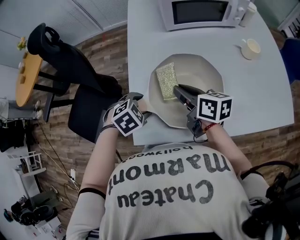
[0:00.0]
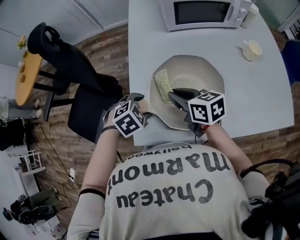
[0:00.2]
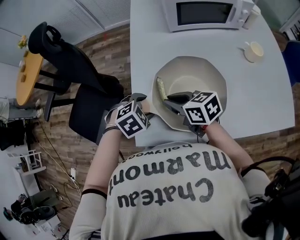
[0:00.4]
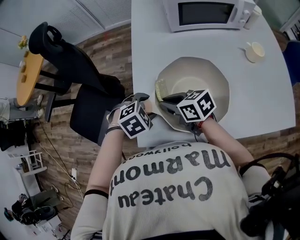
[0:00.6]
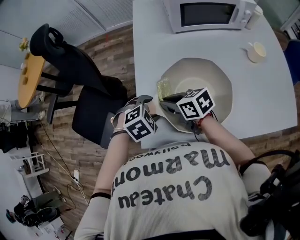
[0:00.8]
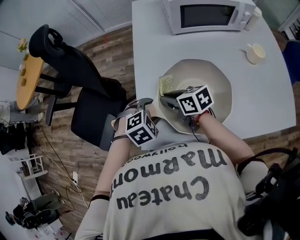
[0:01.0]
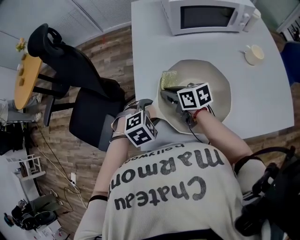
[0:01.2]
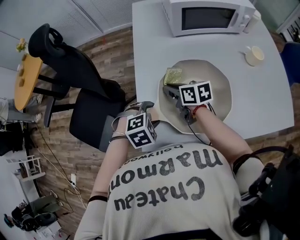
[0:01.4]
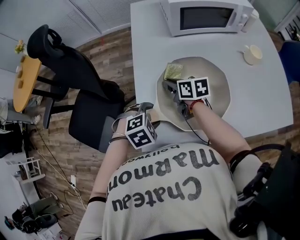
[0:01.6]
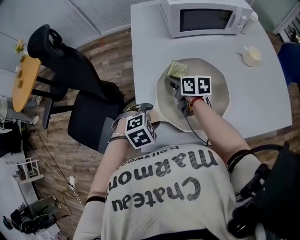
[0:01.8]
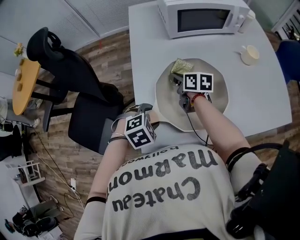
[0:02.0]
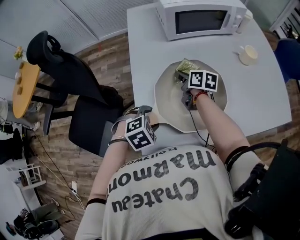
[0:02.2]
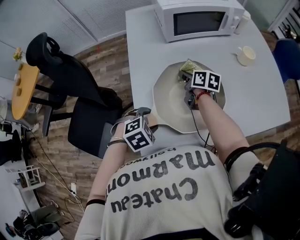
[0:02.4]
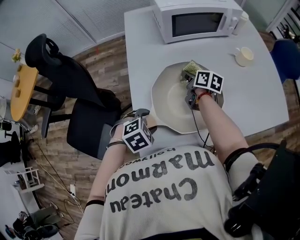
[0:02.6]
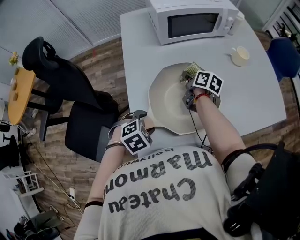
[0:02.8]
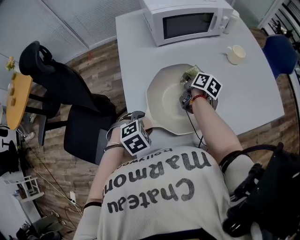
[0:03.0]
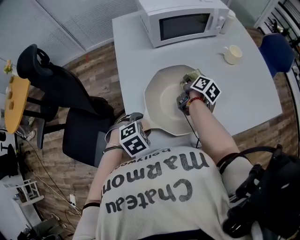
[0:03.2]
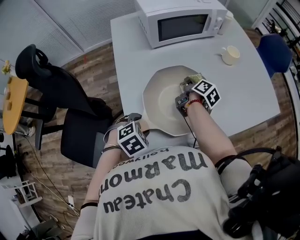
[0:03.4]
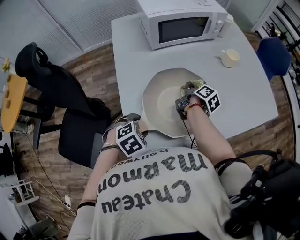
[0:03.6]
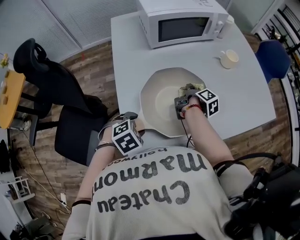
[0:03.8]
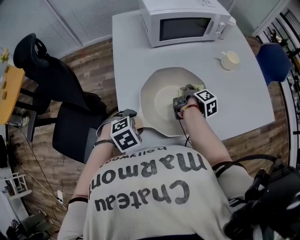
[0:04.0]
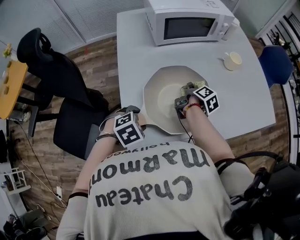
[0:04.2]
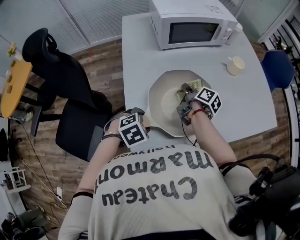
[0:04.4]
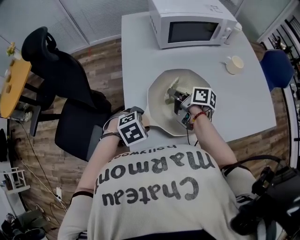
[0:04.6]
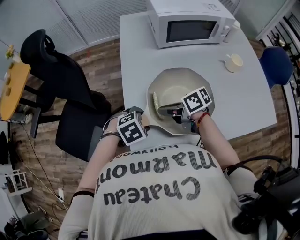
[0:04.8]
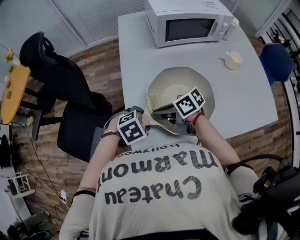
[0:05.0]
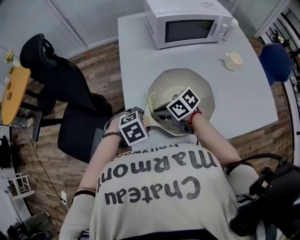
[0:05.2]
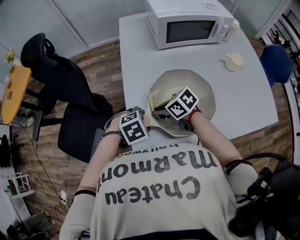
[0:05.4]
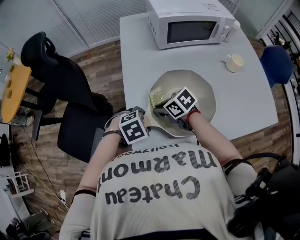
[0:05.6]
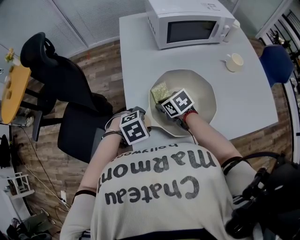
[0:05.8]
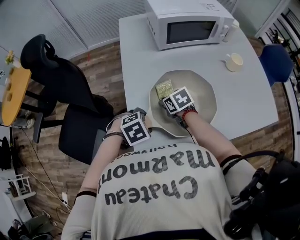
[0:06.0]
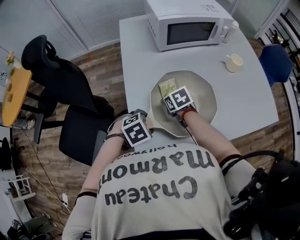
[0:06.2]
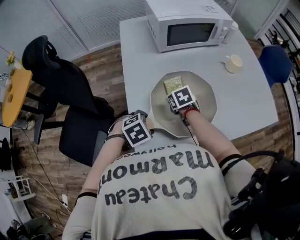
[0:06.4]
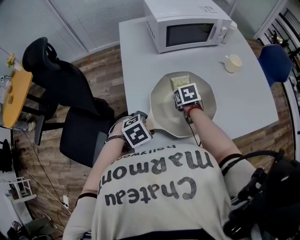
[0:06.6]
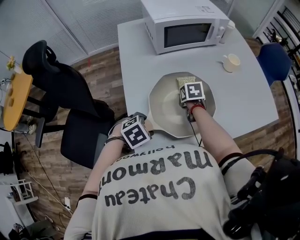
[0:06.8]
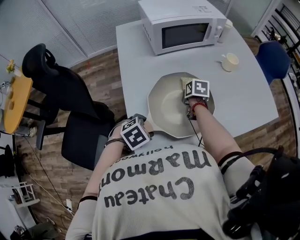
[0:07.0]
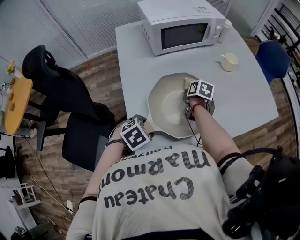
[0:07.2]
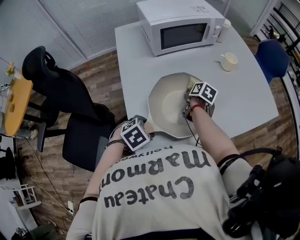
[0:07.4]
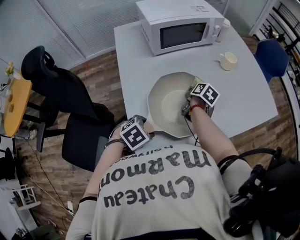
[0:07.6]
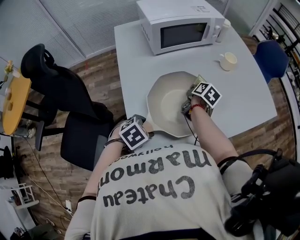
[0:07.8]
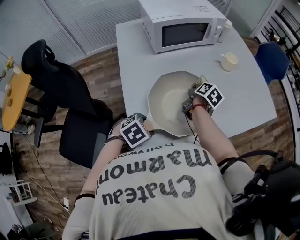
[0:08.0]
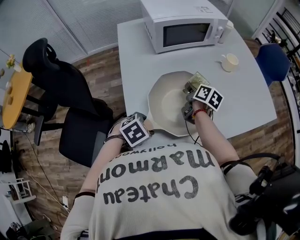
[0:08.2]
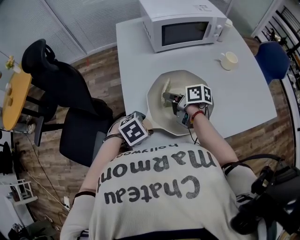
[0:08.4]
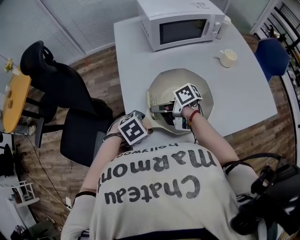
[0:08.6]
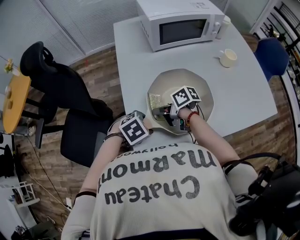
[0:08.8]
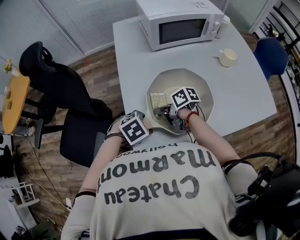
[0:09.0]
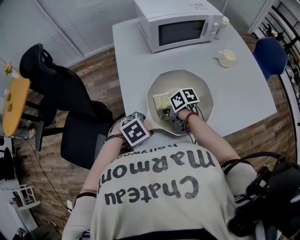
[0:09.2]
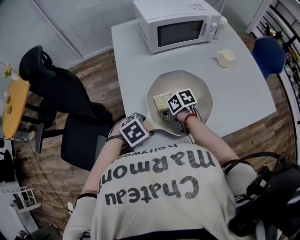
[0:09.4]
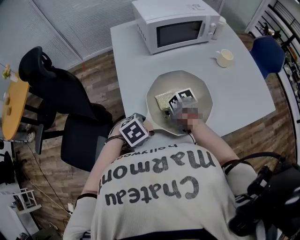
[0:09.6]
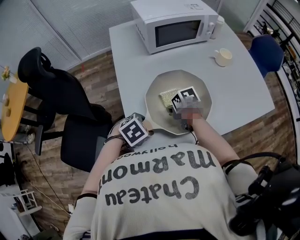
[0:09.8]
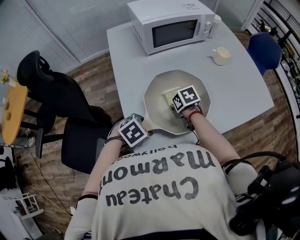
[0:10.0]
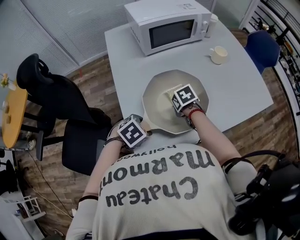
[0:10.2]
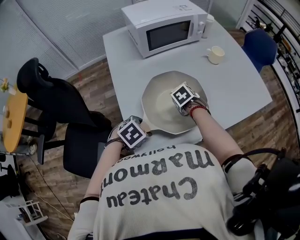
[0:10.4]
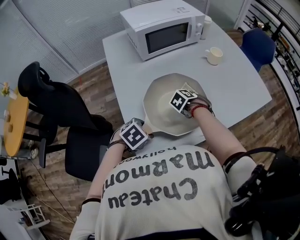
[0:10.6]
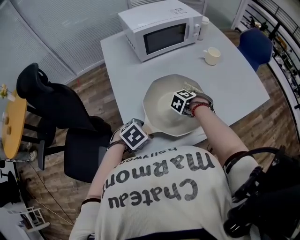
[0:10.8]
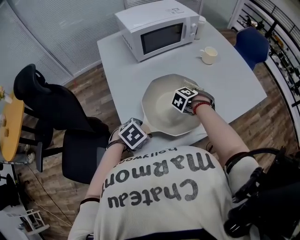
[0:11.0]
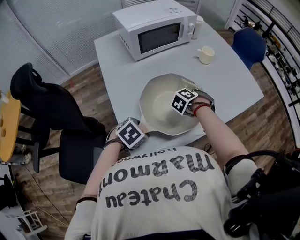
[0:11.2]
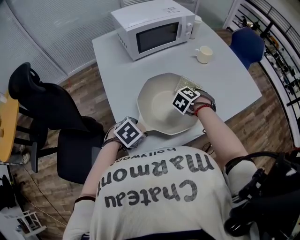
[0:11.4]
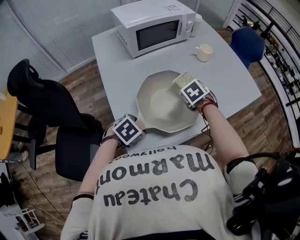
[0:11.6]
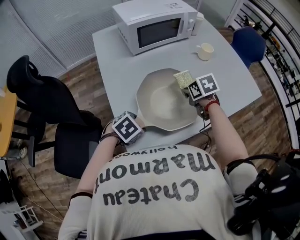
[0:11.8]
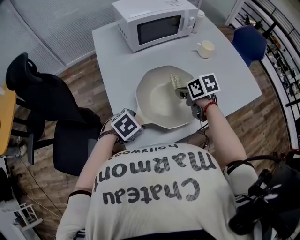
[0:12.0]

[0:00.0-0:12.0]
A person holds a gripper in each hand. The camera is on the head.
0:00.0 to 0:01.6: The right gripper moves forward, downward and to the left, approximately 15 cm.
0:01.6 to 0:03.0: The right gripper travels to the right and forward by about 15 cm, and swivels some 50 degrees.
0:04.4 to 0:06.0: The right gripper rotates around the line of its fingers by roughly 60 degrees, counterclockwise from behind.
0:06.0 to 0:07.6: The right gripper changes place by approximately 20 cm, and twists some 60 degrees clockwise, seen from behind.
0:07.6 to 0:09.0: The right gripper changes place by approximately 25 cm, and rotates roughly 70 degrees.
0:09.0 to 0:10.4: The right gripper changes place by approximately 15 cm, and points its fingers some 50 degrees further downward.
0:10.4 to 0:12.0: The right gripper travels upward by some 10 cm, and rotates roughly 40 degrees.

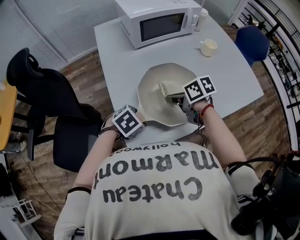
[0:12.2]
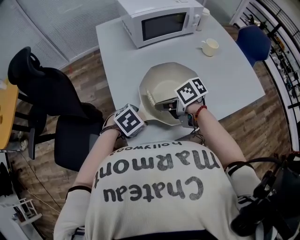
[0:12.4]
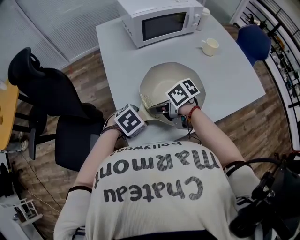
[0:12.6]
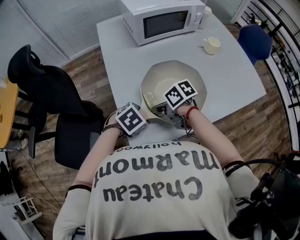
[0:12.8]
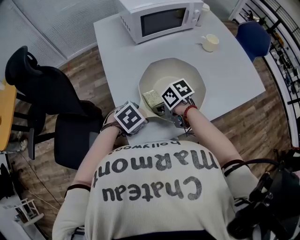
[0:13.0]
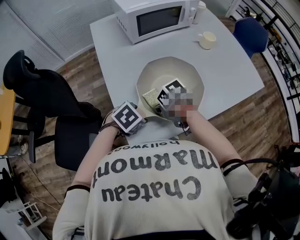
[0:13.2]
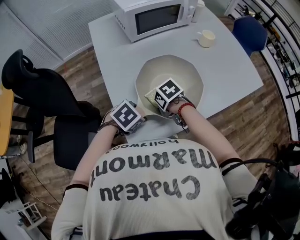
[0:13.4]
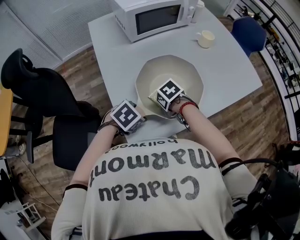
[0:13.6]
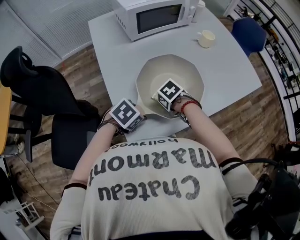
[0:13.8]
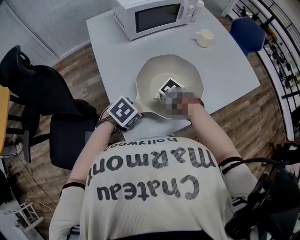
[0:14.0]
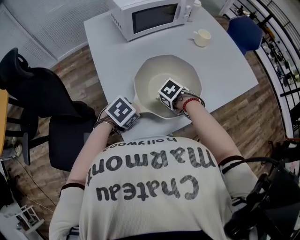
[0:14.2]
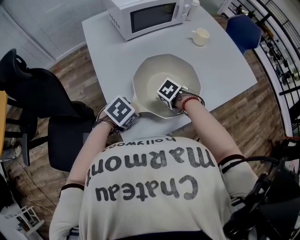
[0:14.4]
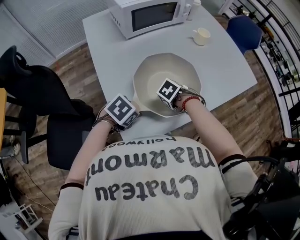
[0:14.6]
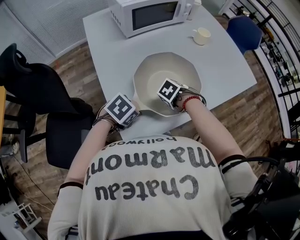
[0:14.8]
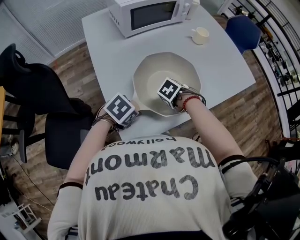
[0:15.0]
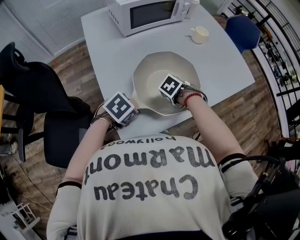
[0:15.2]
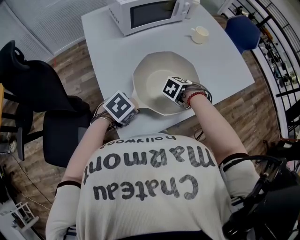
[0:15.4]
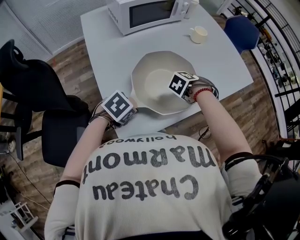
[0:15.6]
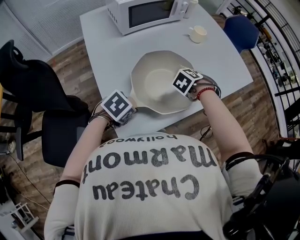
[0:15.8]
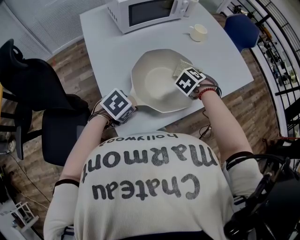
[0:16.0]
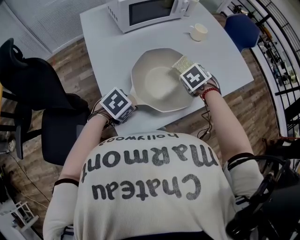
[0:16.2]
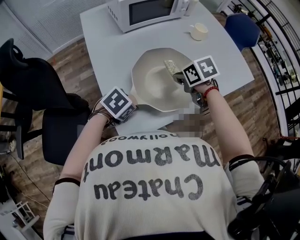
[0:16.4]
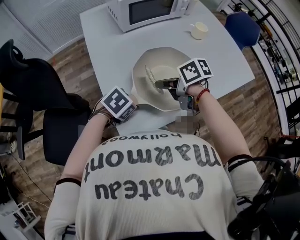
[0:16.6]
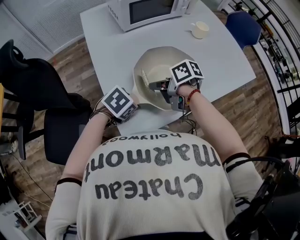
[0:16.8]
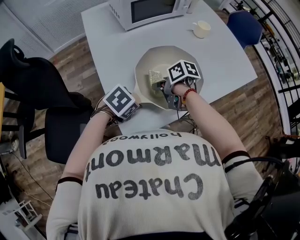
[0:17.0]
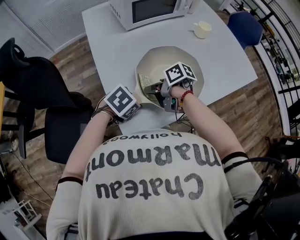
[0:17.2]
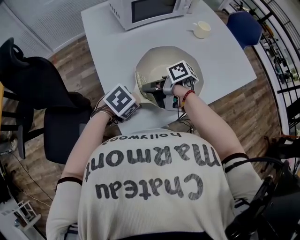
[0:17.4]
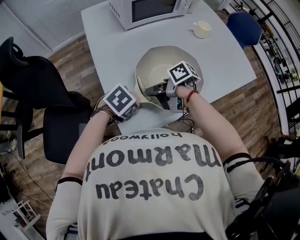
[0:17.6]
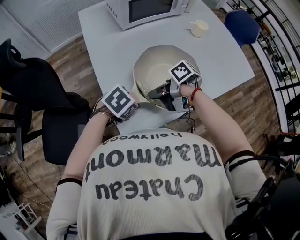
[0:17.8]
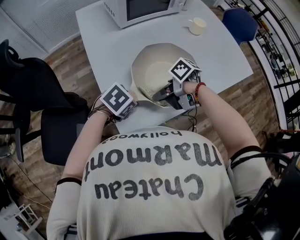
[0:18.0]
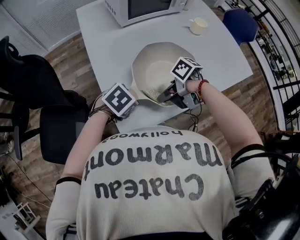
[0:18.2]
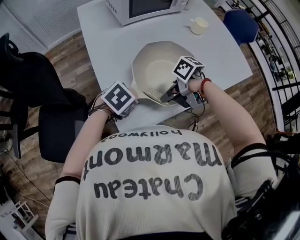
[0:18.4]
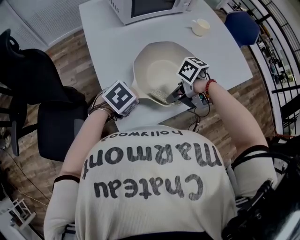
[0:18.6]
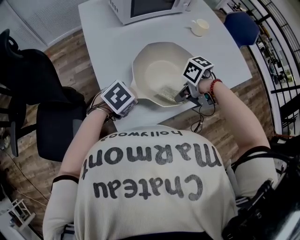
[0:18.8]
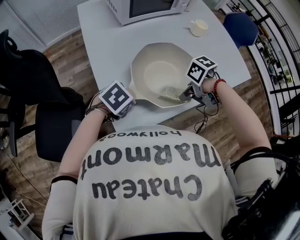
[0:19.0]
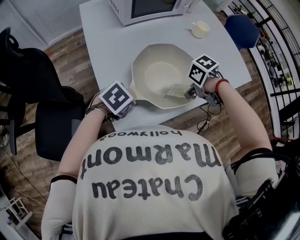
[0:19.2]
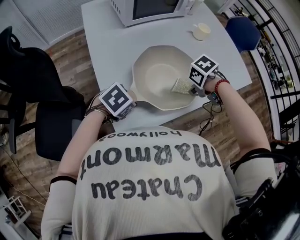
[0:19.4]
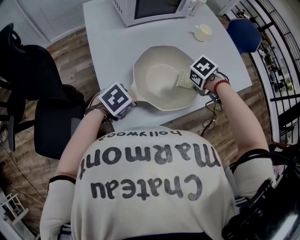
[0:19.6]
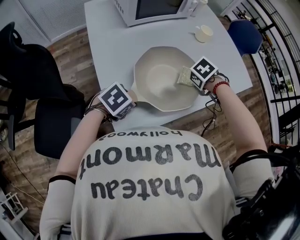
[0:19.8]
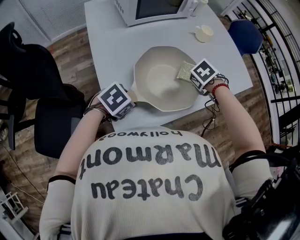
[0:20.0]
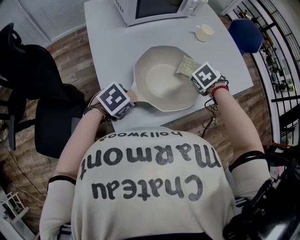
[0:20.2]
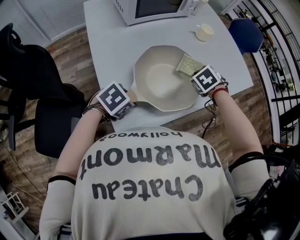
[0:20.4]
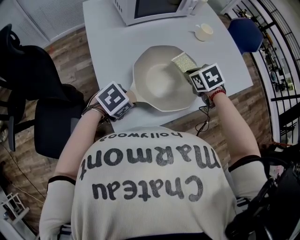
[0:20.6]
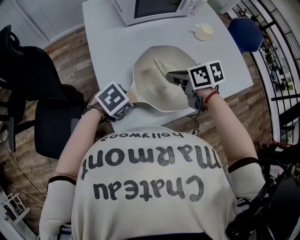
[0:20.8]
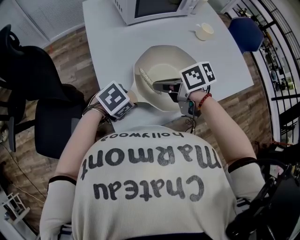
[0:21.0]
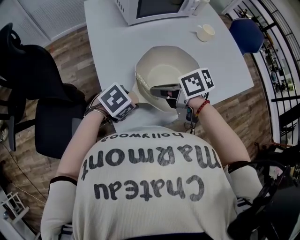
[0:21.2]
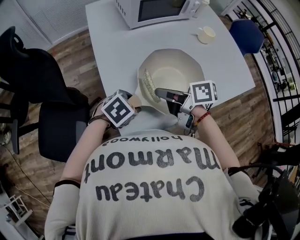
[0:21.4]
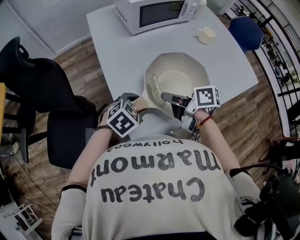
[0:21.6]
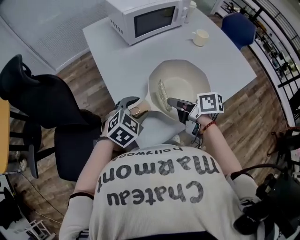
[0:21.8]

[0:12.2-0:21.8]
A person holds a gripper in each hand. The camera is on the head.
0:12.2 to 0:13.8: The right gripper shifts approximately 10 cm downward, and tilts its fingers some 40 degrees downward.
0:13.8 to 0:15.4: The right gripper shifts by approximately 10 cm, and turns by roughly 30 degrees.
0:15.4 to 0:17.0: The right gripper shifts by approximately 15 cm, and angles its fingers upward, by some 30 degrees.
0:17.0 to 0:18.6: The right gripper changes place by some 10 cm, and turns by some 30 degrees.
0:18.6 to 0:20.2: The right gripper changes place by roughly 20 cm, and tips its fingers downward by approximately 30 degrees.
0:20.2 to 0:21.8: The left gripper travels upward by approximately 5 cm, and swivels roughly 30 degrees. The right gripper moves approximately 25 cm, and angles its fingers upward, by approximately 50 degrees.

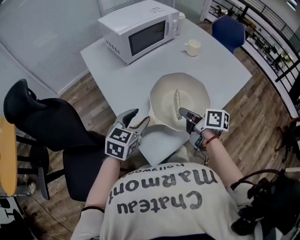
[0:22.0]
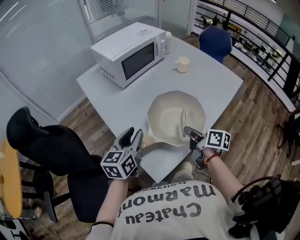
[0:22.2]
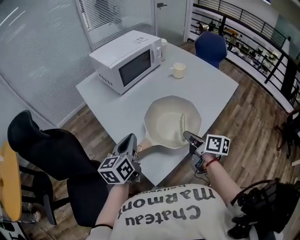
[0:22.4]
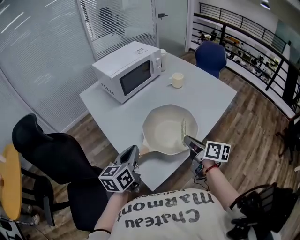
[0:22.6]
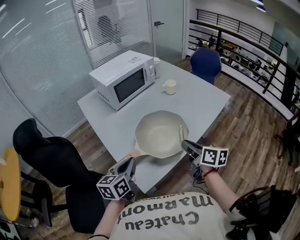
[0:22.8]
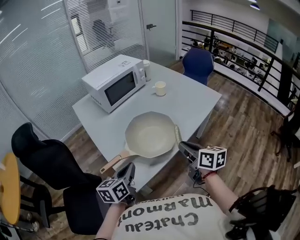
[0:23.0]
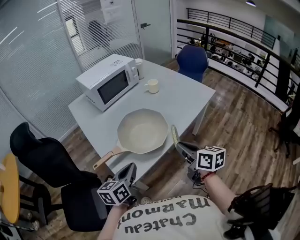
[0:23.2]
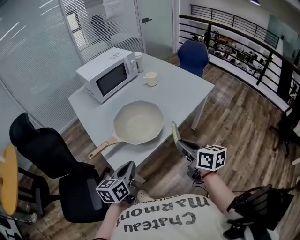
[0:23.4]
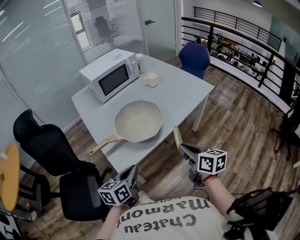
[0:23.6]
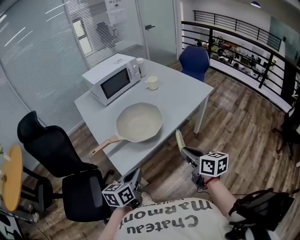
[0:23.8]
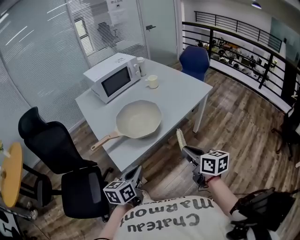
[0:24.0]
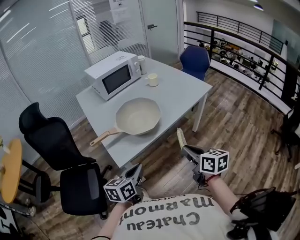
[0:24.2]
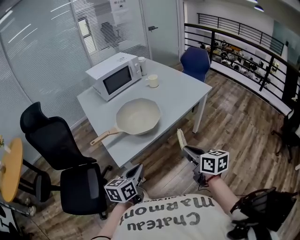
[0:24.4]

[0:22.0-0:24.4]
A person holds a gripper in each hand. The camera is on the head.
0:22.0 to 0:23.2: The right gripper is displaced to the right, backward and upward by approximately 25 cm, and changes its angle by some 30 degrees; the left gripper travels backward and to the right by about 20 cm, swivels roughly 30 degrees, and closes.
0:23.2 to 0:24.4: Both grippers travel together backward and to the right, roughly 15 cm.
